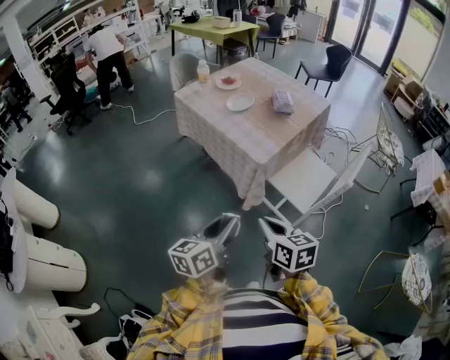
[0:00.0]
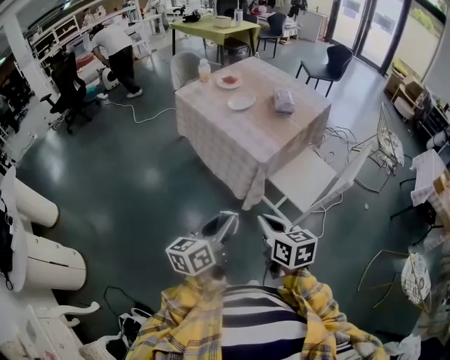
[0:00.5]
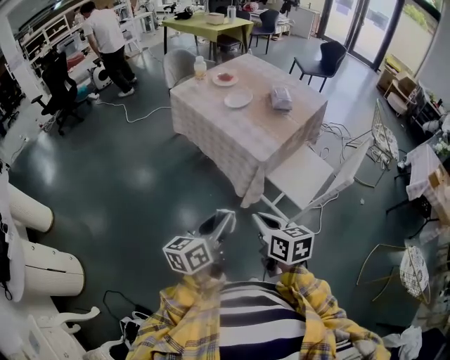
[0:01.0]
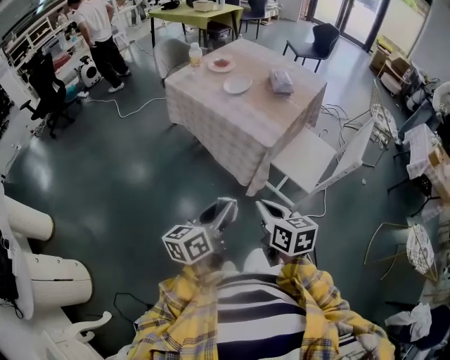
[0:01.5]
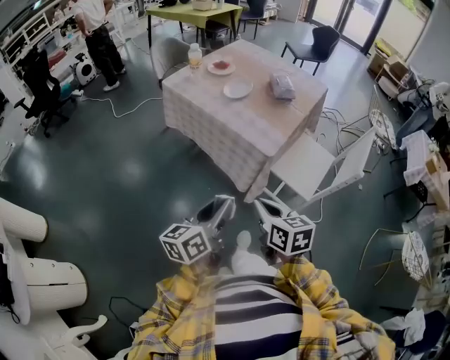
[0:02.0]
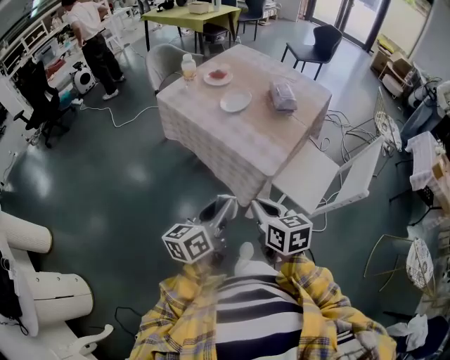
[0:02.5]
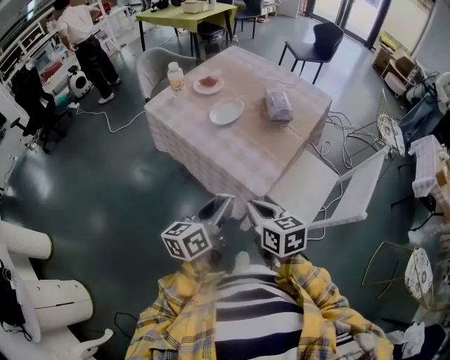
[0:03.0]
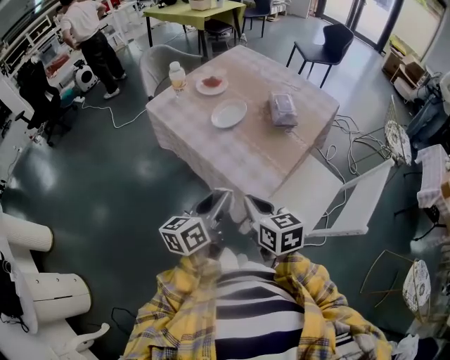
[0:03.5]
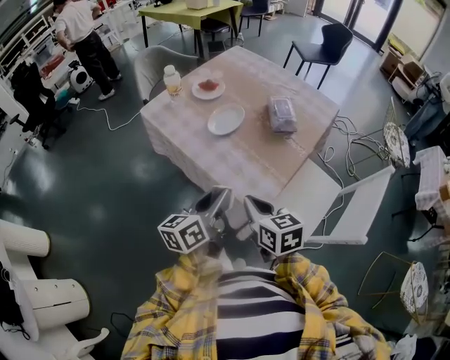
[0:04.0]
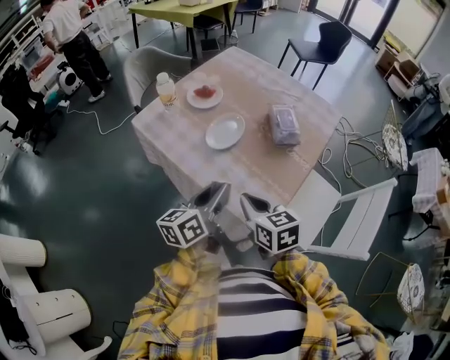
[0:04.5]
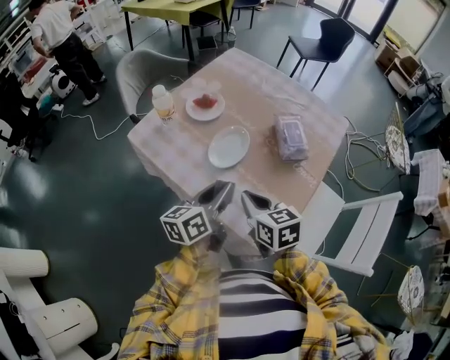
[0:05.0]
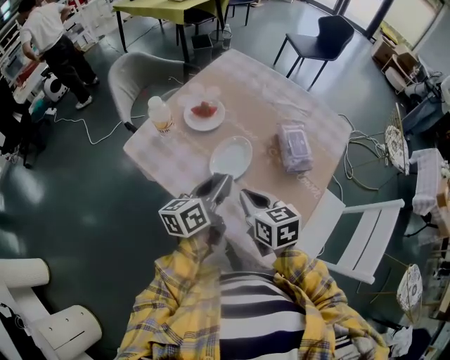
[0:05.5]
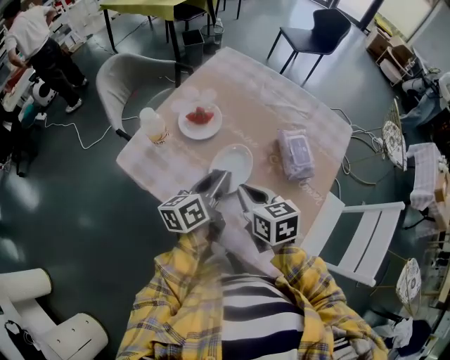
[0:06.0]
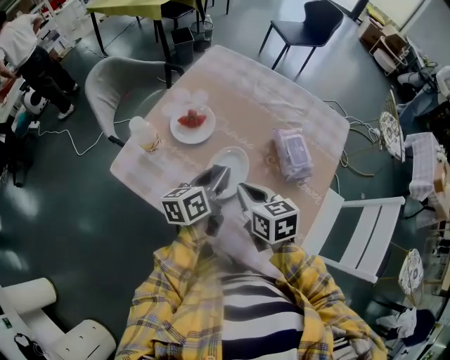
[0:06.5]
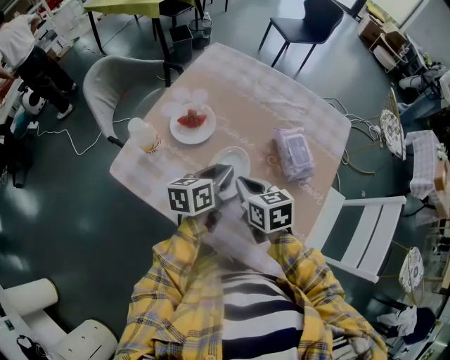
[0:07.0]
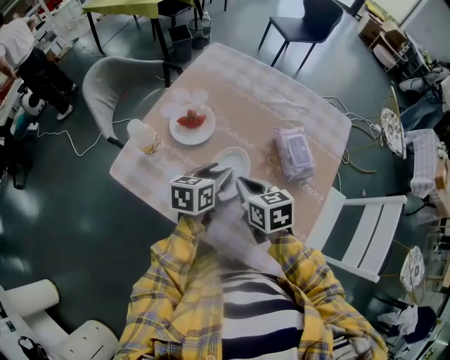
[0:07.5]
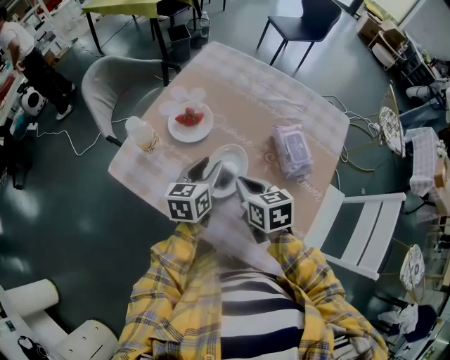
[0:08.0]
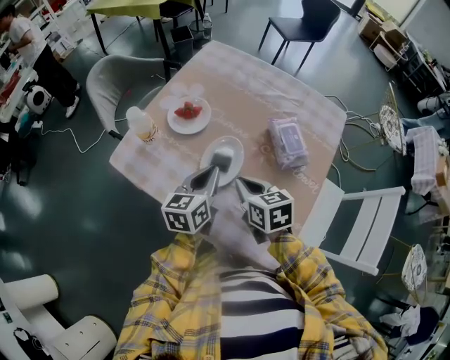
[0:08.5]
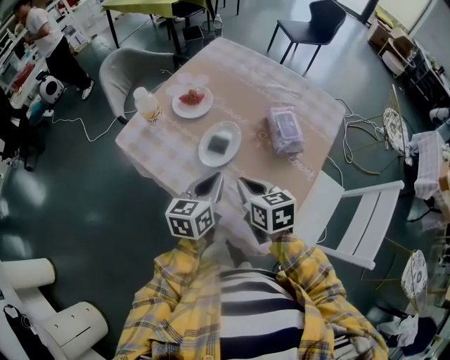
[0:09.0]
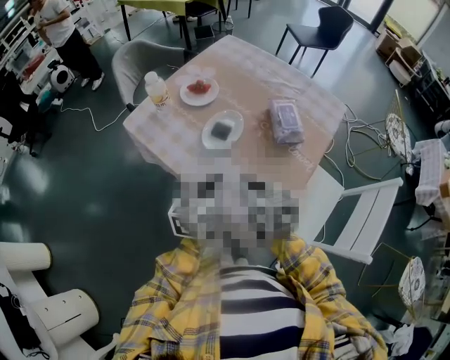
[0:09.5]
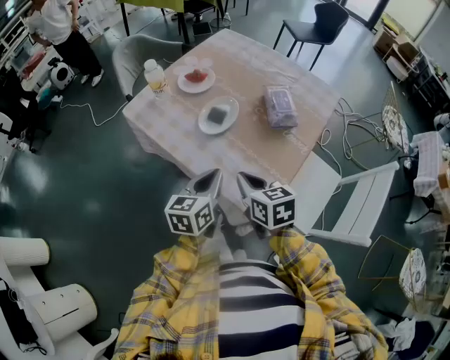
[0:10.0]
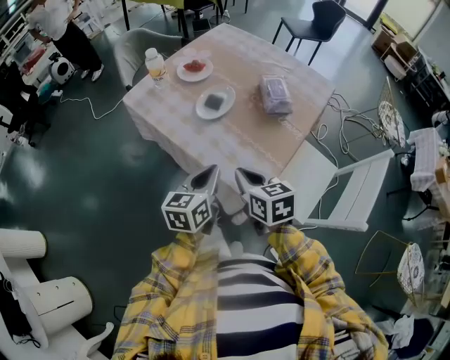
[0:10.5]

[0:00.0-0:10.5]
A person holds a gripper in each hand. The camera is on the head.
0:00.0 to 0:02.0: Both grippers travel together to the left and forward, some 10 cm.
0:02.0 to 0:04.0: Both grippers travel together forward, approximately 25 cm.
0:04.0 to 0:06.5: Both grippers travel together forward, some 30 cm.
0:06.5 to 0:08.5: The left gripper changes its angle by about 20 degrees, and closes its fingers.
0:08.5 to 0:10.5: The grippers both shift backward by some 20 cm.

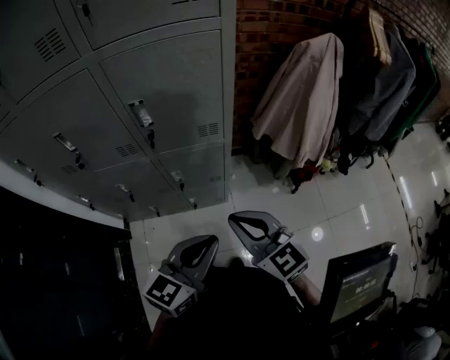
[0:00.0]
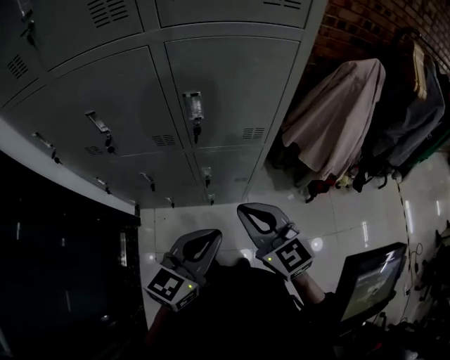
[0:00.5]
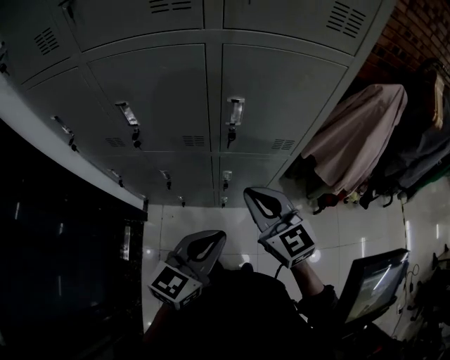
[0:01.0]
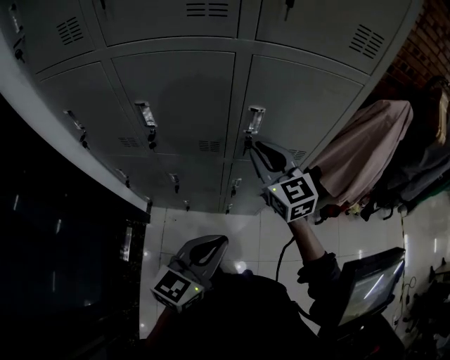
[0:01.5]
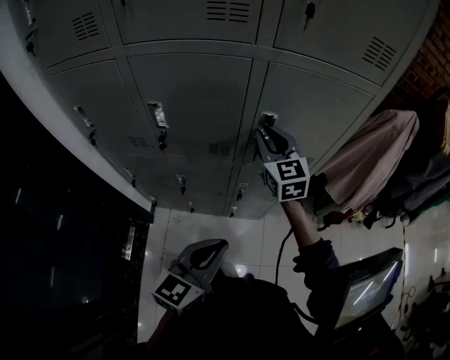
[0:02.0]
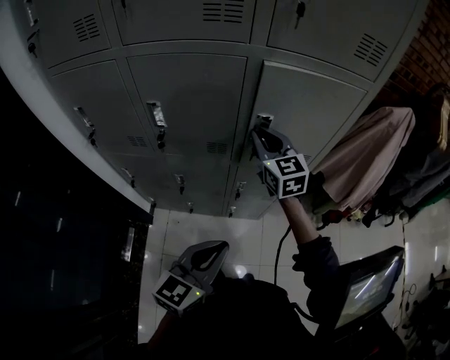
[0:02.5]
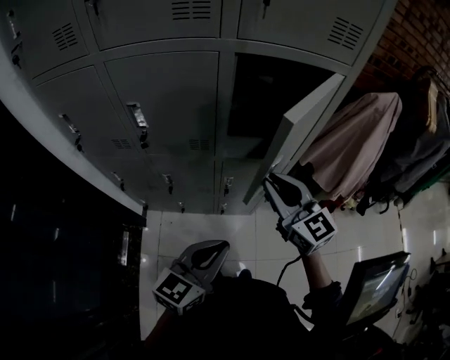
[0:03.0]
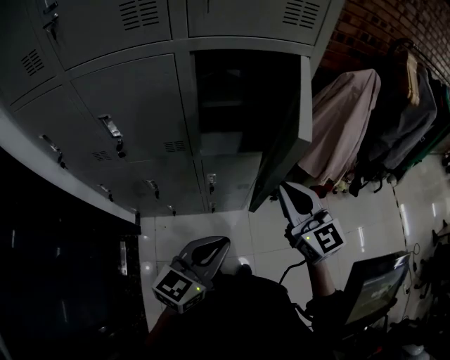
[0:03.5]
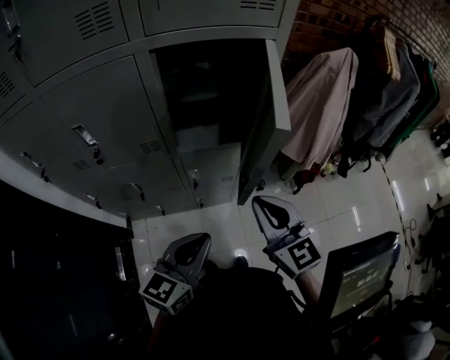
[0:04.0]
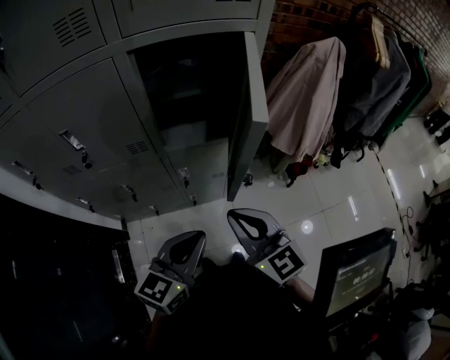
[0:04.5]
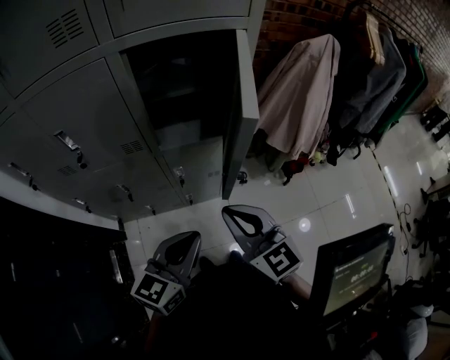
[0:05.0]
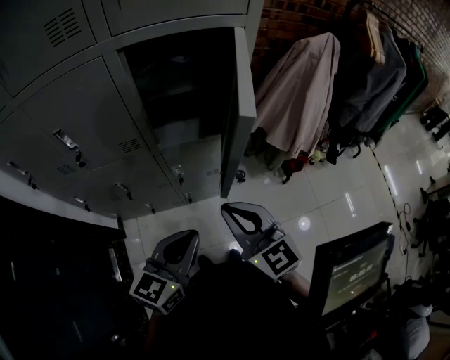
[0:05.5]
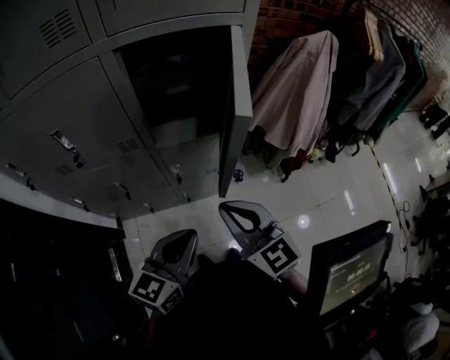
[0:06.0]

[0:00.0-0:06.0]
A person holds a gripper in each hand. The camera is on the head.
0:00.0 to 0:02.0: The right gripper is displaced forward and to the left by about 35 cm. Meanwhile the left gripper heads to the left, covering some 20 cm.
0:02.0 to 0:04.0: The left gripper heads to the right, covering some 10 cm, while the right gripper goes roughly 30 cm backward and to the right.
0:04.0 to 0:06.0: The grippers stay close to where they were, moving slightly.

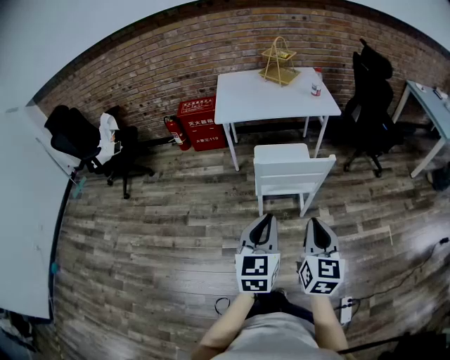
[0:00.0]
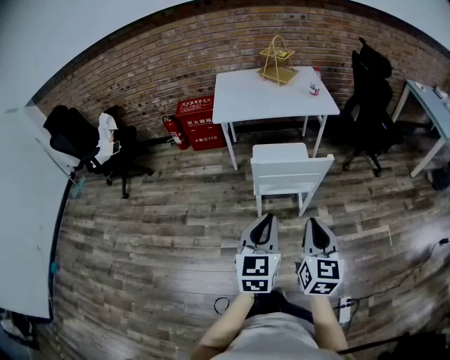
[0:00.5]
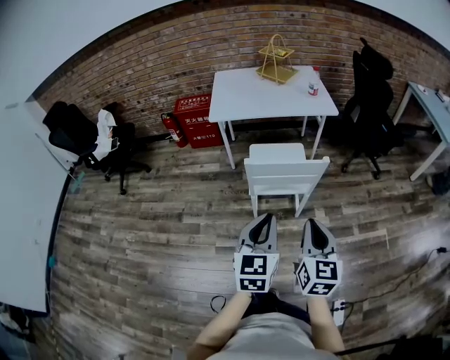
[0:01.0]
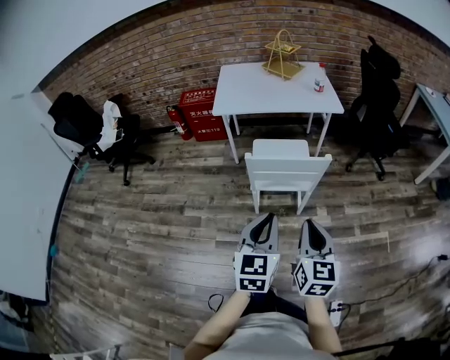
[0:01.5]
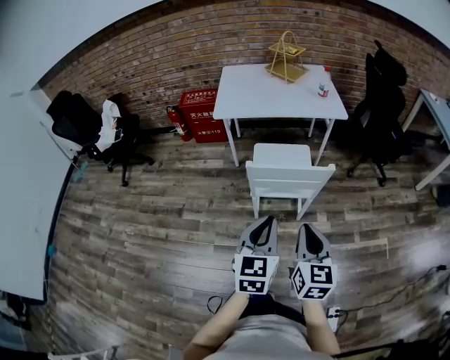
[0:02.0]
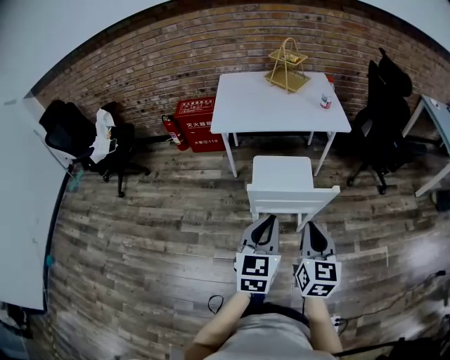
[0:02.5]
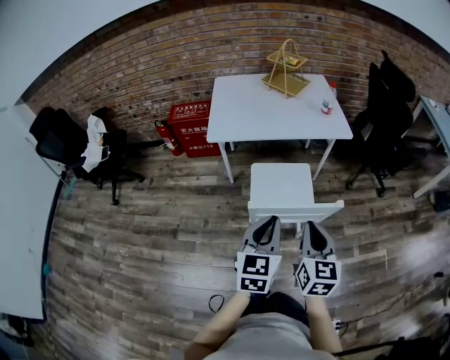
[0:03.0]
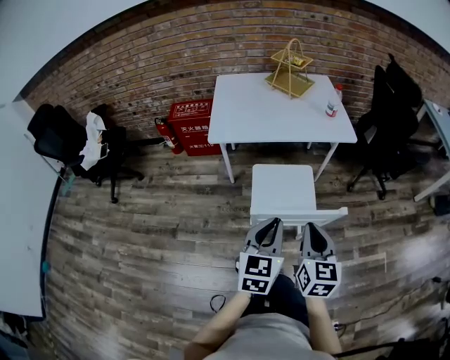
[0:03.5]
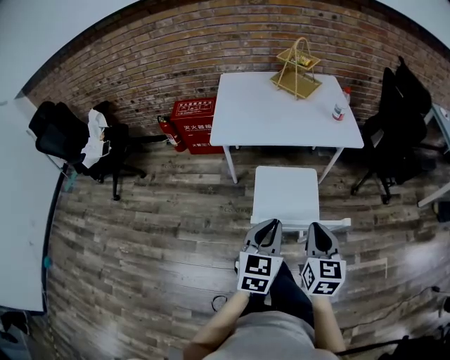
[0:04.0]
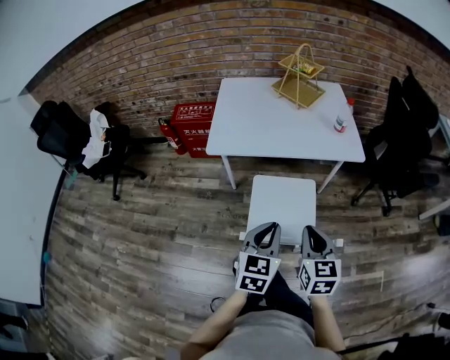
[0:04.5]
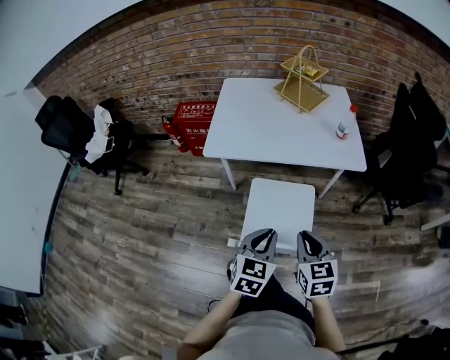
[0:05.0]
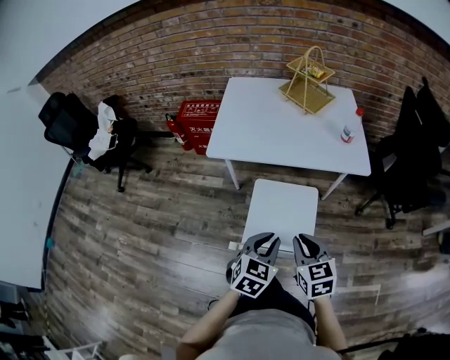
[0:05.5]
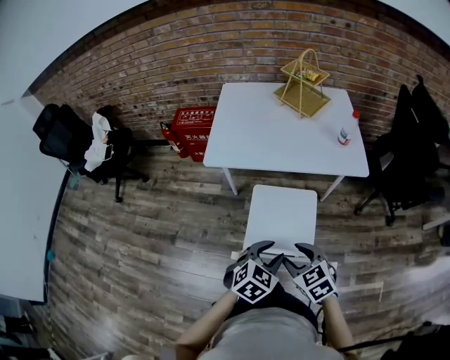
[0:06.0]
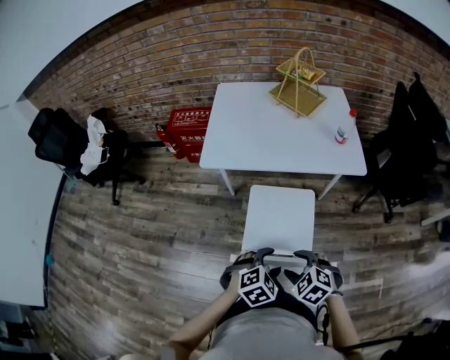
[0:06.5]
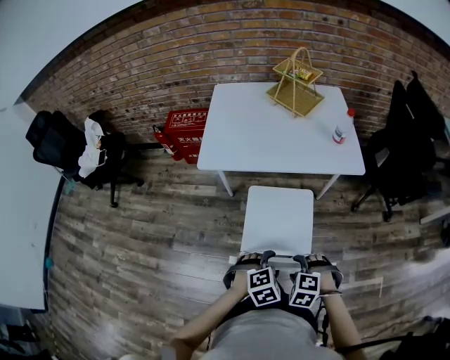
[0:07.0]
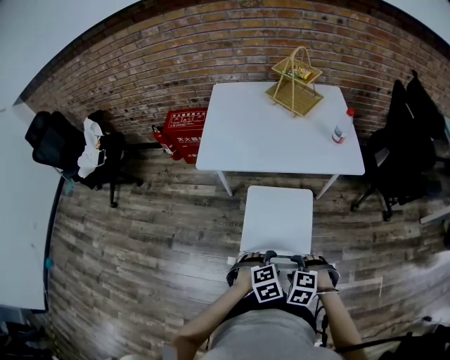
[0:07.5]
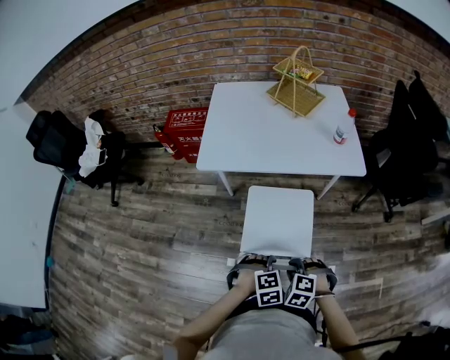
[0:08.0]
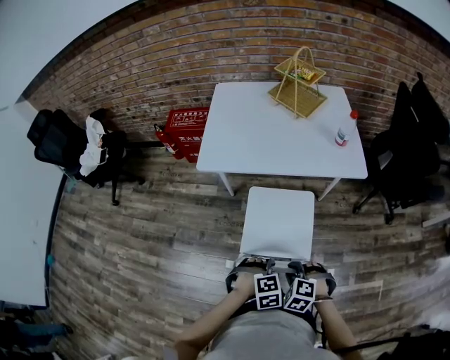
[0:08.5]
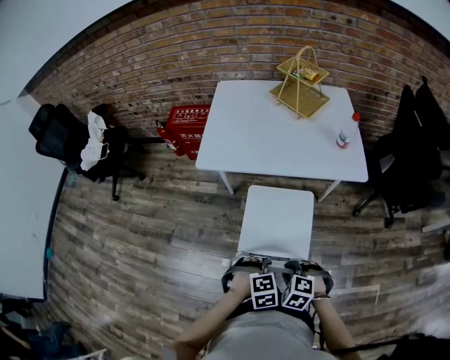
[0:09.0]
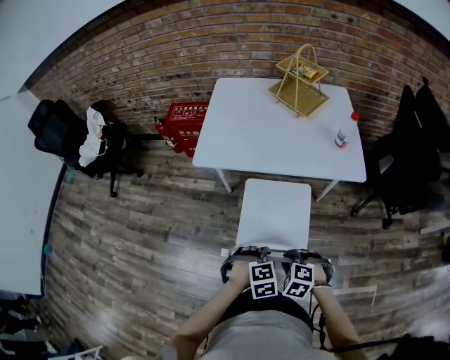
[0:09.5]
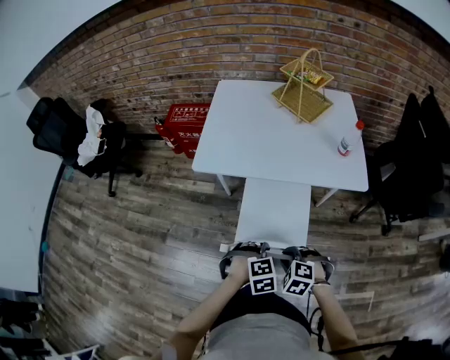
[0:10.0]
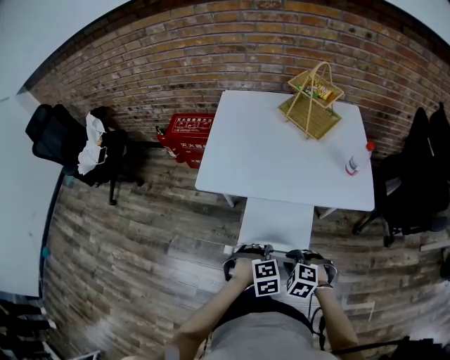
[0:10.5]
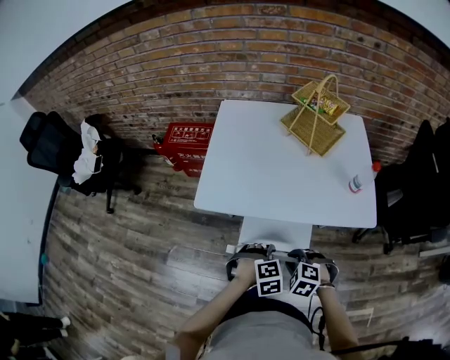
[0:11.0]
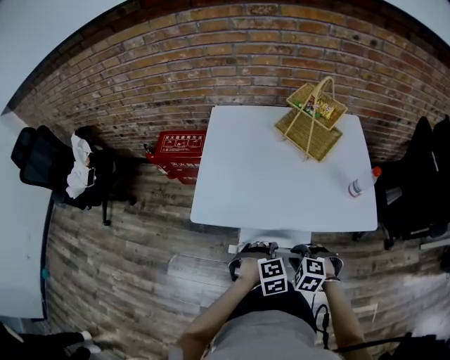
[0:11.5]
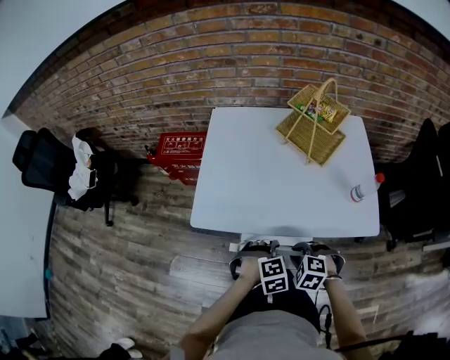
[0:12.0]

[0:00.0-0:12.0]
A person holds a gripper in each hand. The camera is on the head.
0:00.0 to 0:02.0: The right gripper heads forward, covering roughly 5 cm. Meanwhile the left gripper shifts some 5 cm to the right and forward.
0:02.0 to 0:04.0: Both grippers move forward, about 25 cm.
0:04.0 to 0:06.0: The left gripper is displaced downward, to the right and forward by about 15 cm, swivels about 30 degrees, and opens; the right gripper heads downward and forward, covering roughly 10 cm, changes its angle by about 50 degrees, and opens up.
0:06.0 to 0:08.0: Both grippers travel together downward, about 10 cm. The right gripper swivels about 40 degrees, and closes, while the left gripper turns by about 50 degrees, and opens, then closes once more.
0:08.0 to 0:10.0: The grippers both shift forward by some 10 cm.
0:10.0 to 0:12.0: Both grippers travel together forward, approximately 25 cm.
